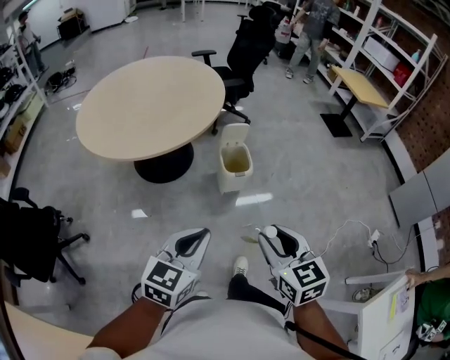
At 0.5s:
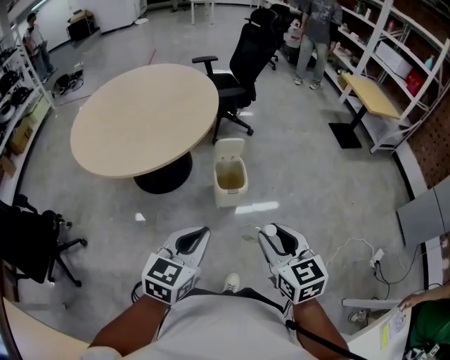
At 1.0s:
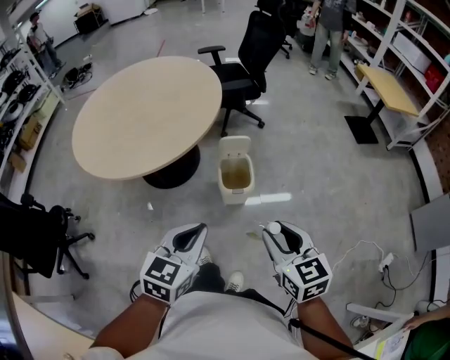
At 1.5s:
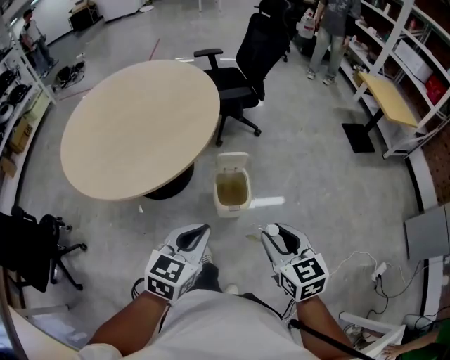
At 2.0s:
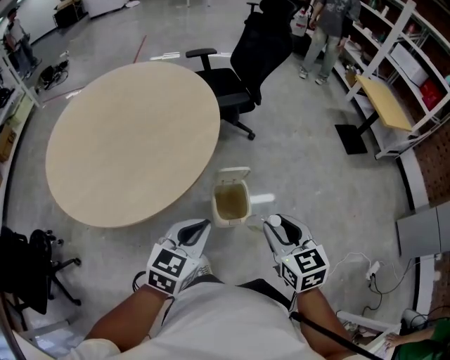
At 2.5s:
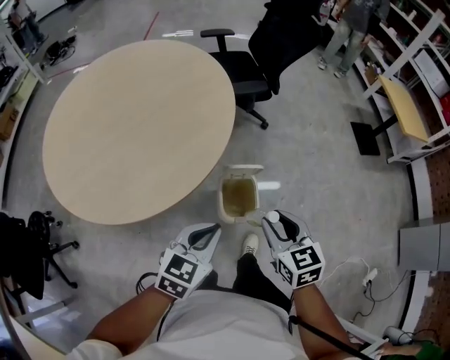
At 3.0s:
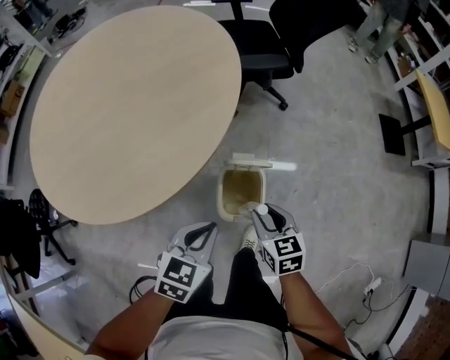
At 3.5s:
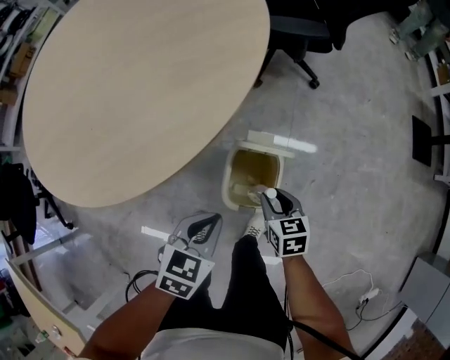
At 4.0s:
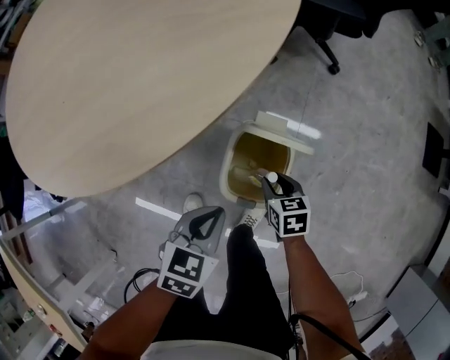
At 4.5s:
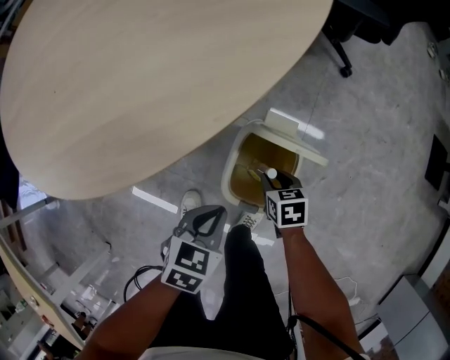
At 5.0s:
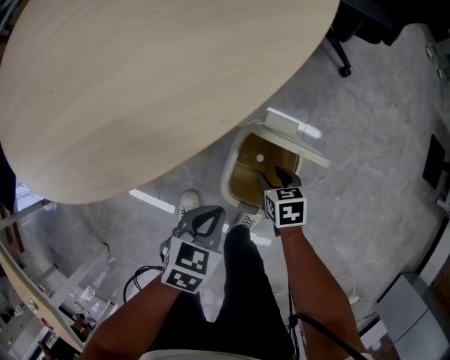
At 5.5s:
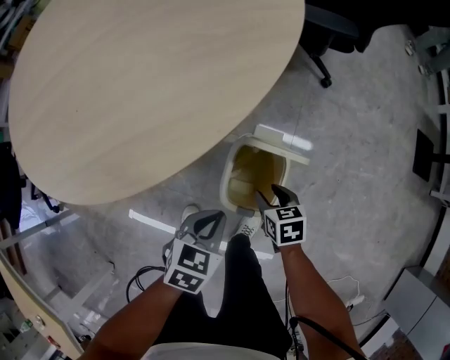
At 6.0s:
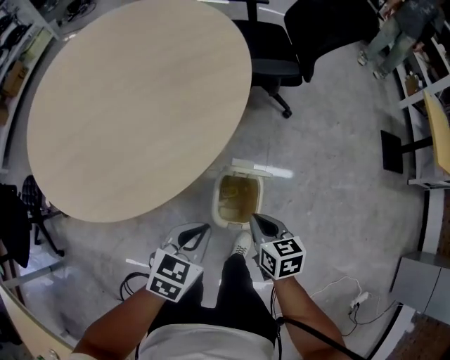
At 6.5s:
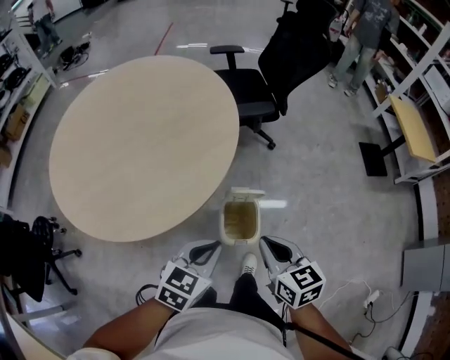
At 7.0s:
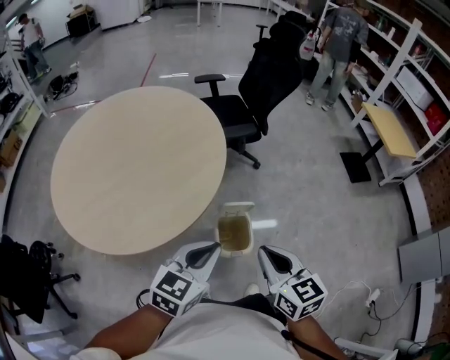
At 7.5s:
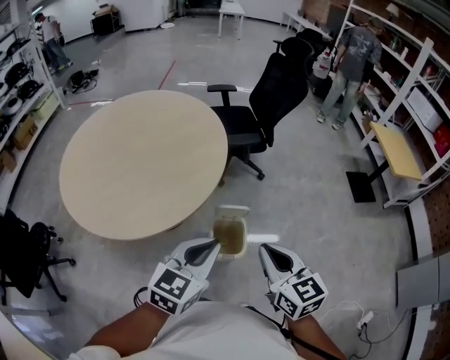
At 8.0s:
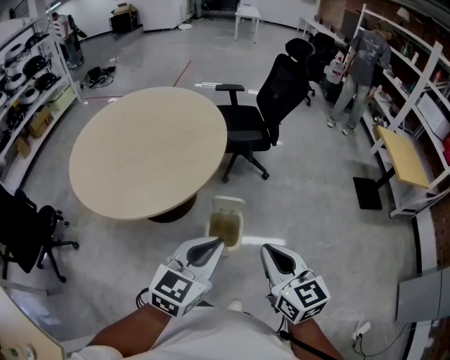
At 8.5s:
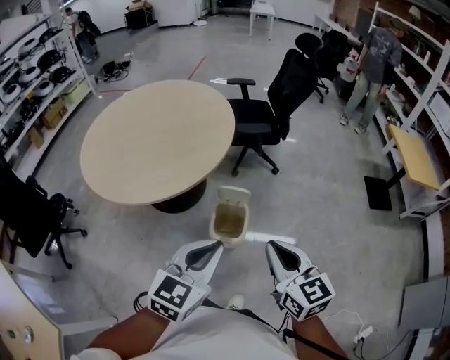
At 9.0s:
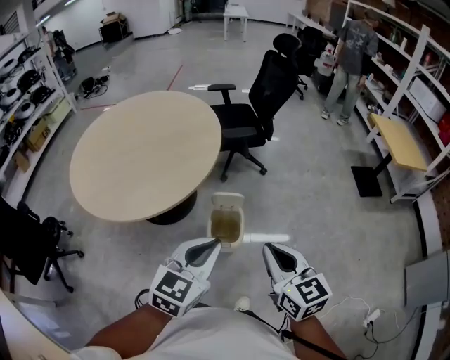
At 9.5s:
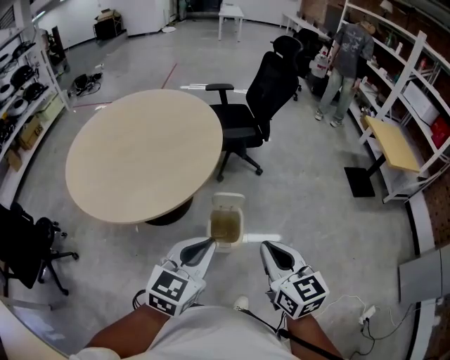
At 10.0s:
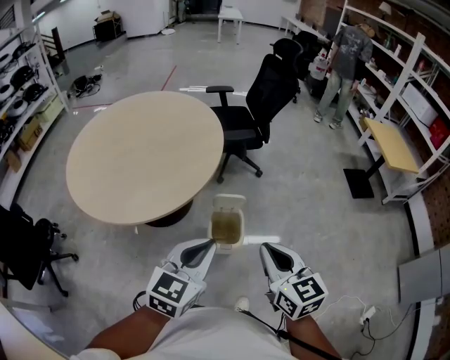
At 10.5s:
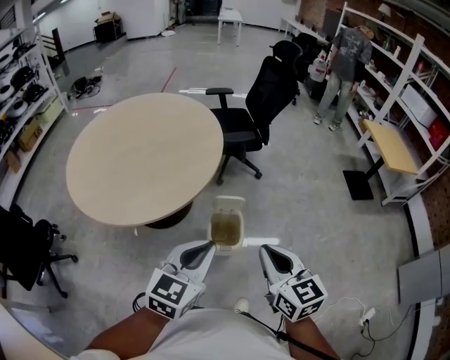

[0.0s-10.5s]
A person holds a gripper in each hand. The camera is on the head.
0.0s to 2.0s: The grippers both shift forward by some 35 cm.
2.0s to 4.0s: The right gripper is displaced downward by some 40 cm, and swivels approximately 40 degrees; the left gripper shifts approximately 25 cm downward, and swivels some 30 degrees.
4.0s to 6.5s: The left gripper goes approximately 20 cm upward, and swivels some 30 degrees, while the right gripper is displaced upward by approximately 35 cm, rotates roughly 30 degrees, and closes.
6.5s to 8.5s: The left gripper moves upward, to the right and backward, roughly 20 cm, and rotates roughly 20 degrees; the right gripper is displaced to the right, upward and backward by approximately 20 cm.
8.5s to 10.5s: Both grippers move to the left, about 5 cm.

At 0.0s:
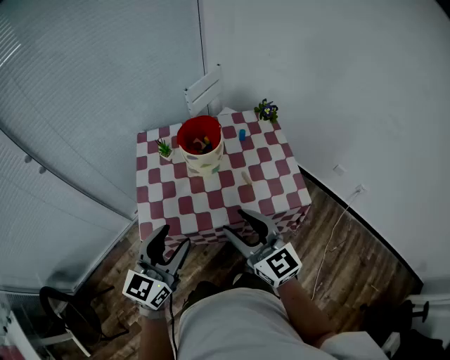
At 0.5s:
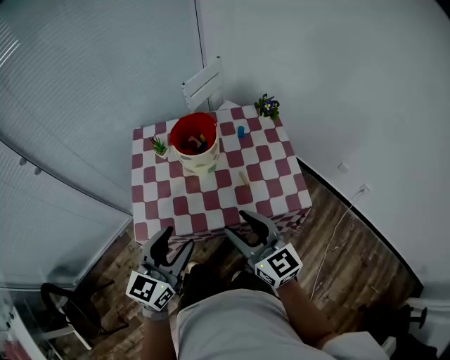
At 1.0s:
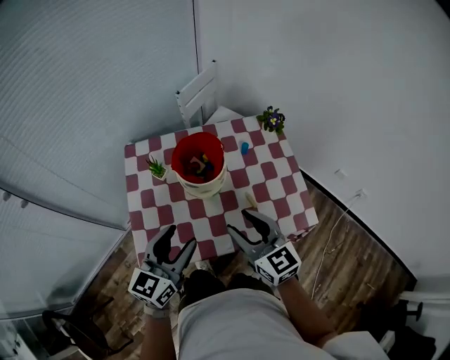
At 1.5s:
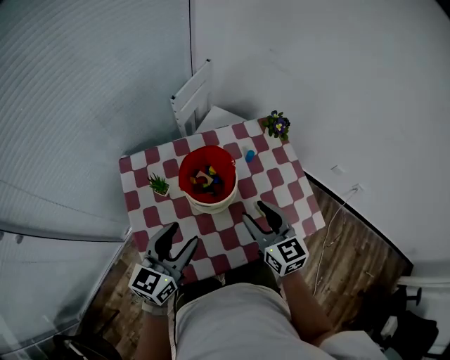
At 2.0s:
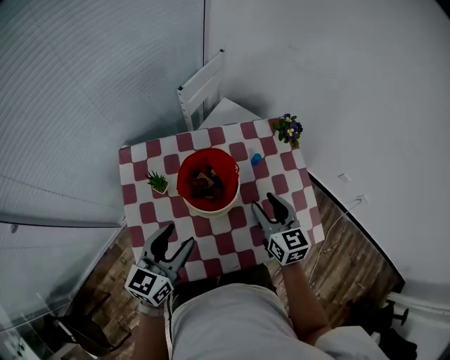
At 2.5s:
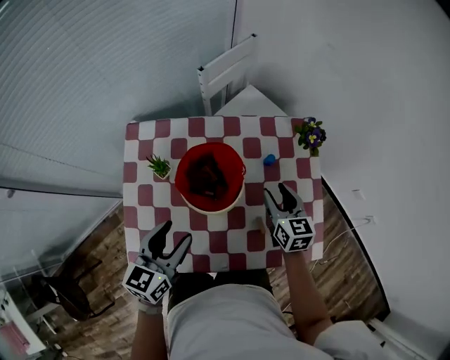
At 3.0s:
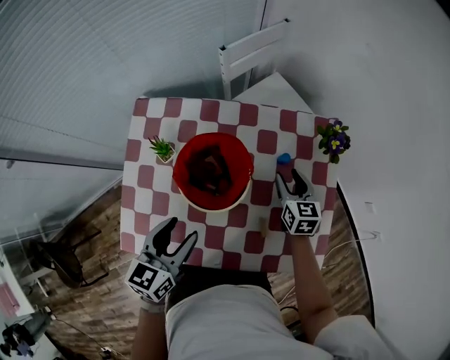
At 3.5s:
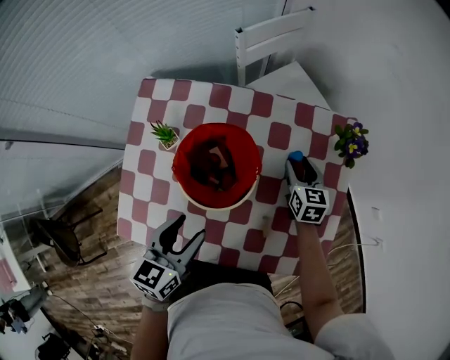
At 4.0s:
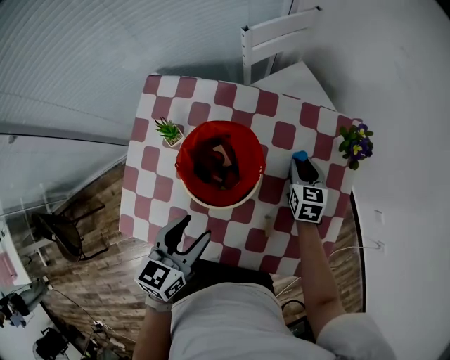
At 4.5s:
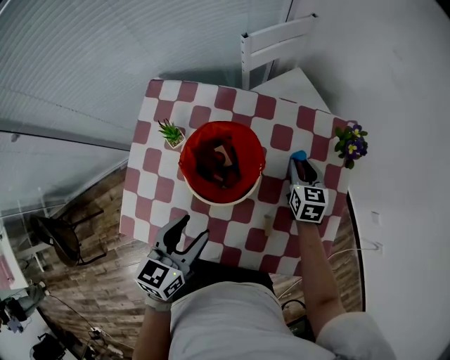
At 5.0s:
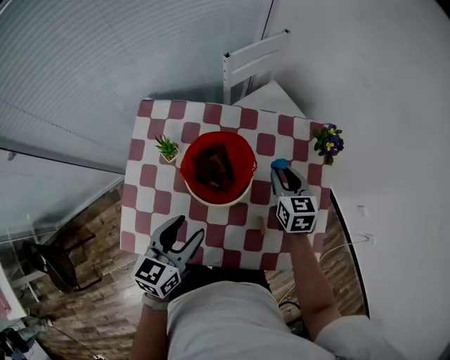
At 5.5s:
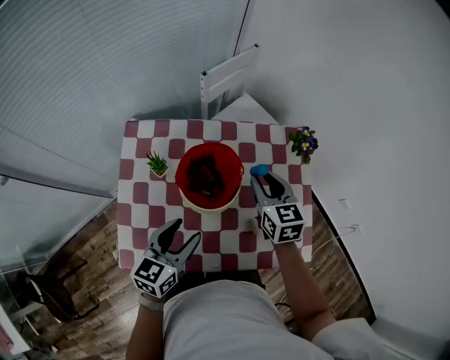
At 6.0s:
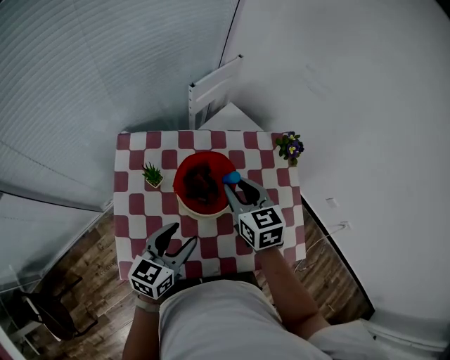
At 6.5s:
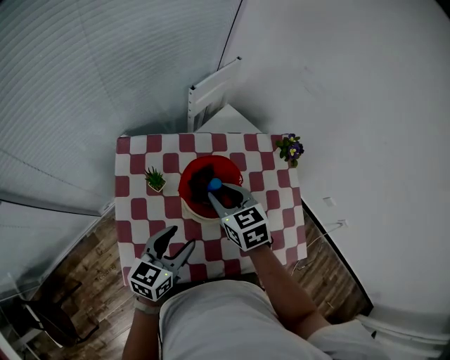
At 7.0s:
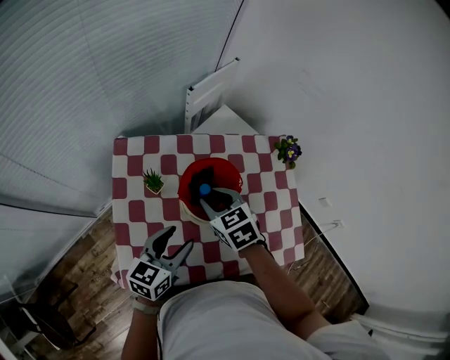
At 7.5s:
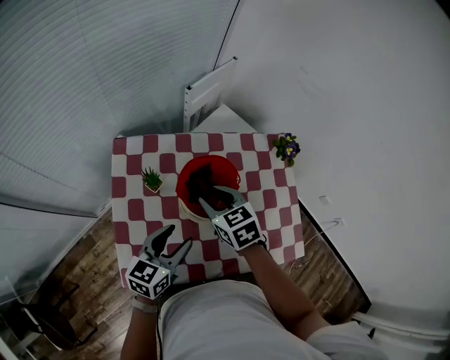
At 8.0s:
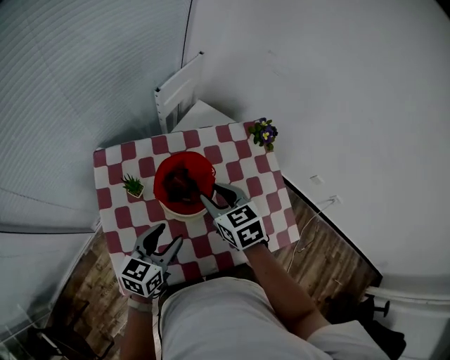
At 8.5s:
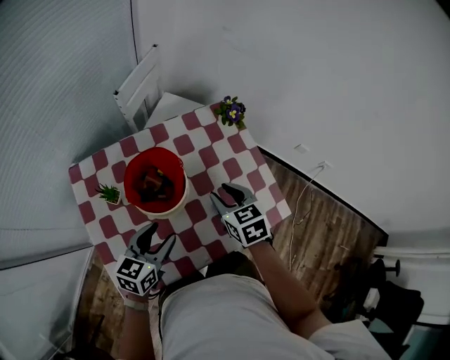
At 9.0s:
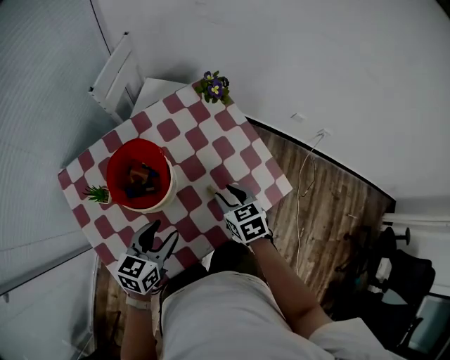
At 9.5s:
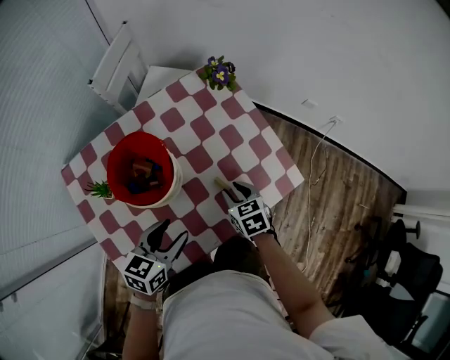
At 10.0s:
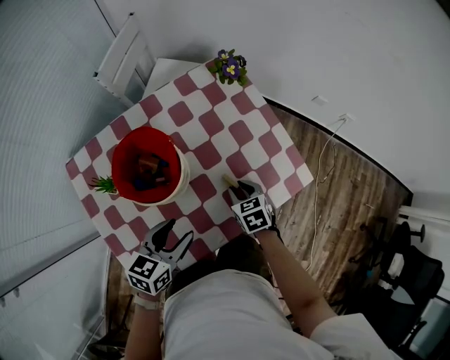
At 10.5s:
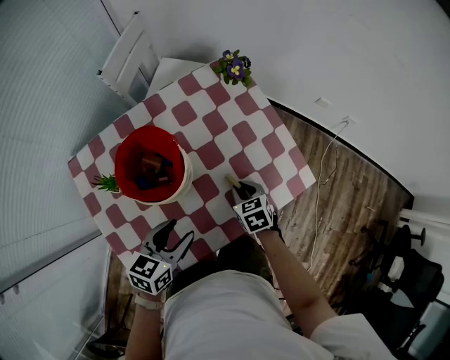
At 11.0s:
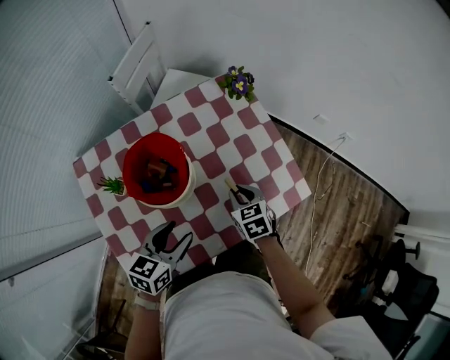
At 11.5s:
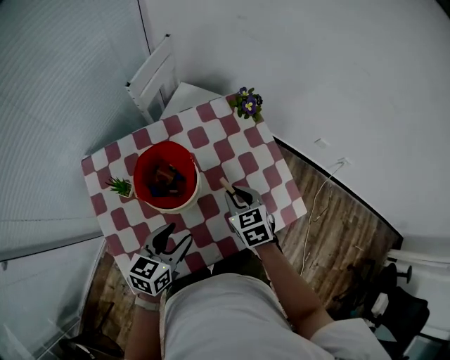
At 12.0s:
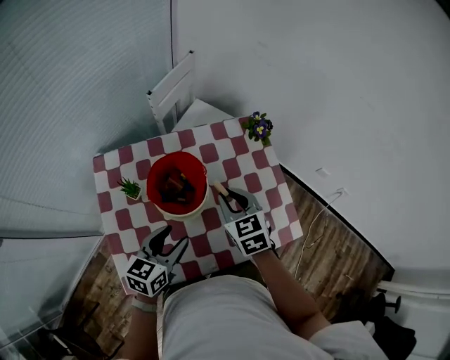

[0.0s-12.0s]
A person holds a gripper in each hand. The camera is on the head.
0.0s to 2.0s: Both grippers move forward, some 30 cm. The right gripper rotates about 30 degrees.
2.0s to 4.0s: The right gripper heads downward and forward, covering some 25 cm; the left gripper heads downward and to the right, covering roughly 10 cm, and rotates about 30 degrees.
4.0s to 6.0s: The left gripper travels to the left by approximately 5 cm, and changes its angle by about 20 degrees, while the right gripper is displaced upward, to the left and backward by approximately 30 cm.
6.0s to 8.0s: The right gripper travels to the left and back again, about 10 cm each way.
8.0s to 10.0s: The right gripper shifts about 25 cm downward and to the right, and turns by roughly 30 degrees. The left gripper is displaced to the right and downward by roughly 10 cm, and swivels roughly 20 degrees.
10.0s to 12.0s: The left gripper shifts approximately 5 cm upward, and turns by about 20 degrees. The right gripper shifts about 25 cm upward and to the left, and swivels approximately 30 degrees.

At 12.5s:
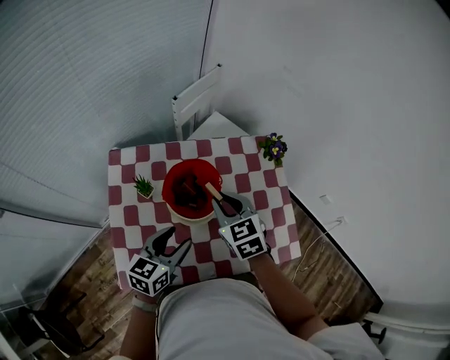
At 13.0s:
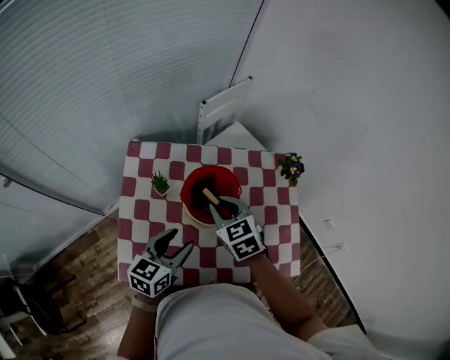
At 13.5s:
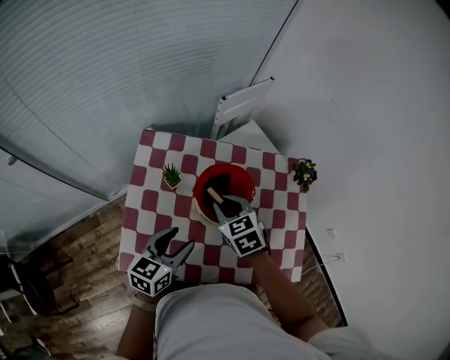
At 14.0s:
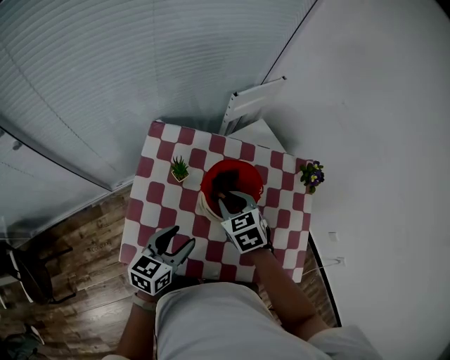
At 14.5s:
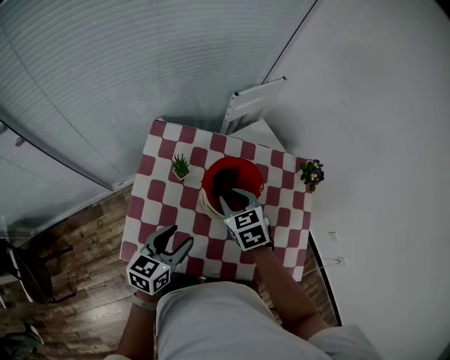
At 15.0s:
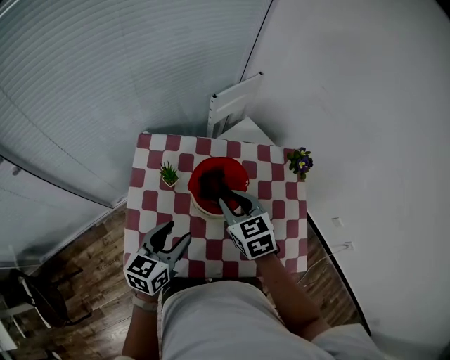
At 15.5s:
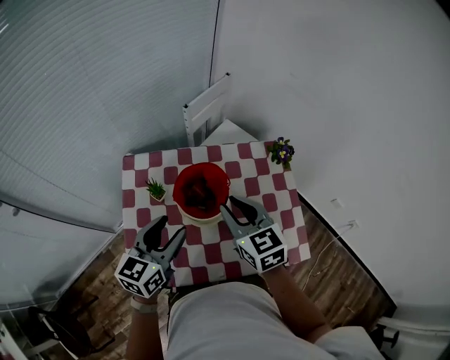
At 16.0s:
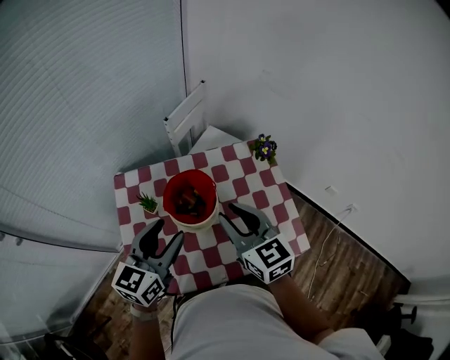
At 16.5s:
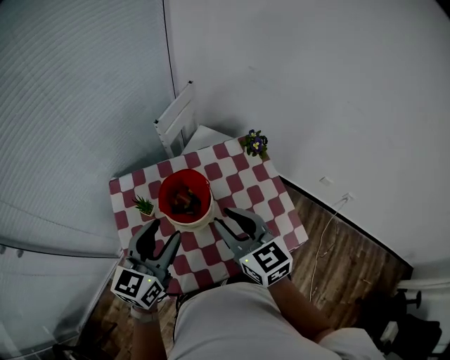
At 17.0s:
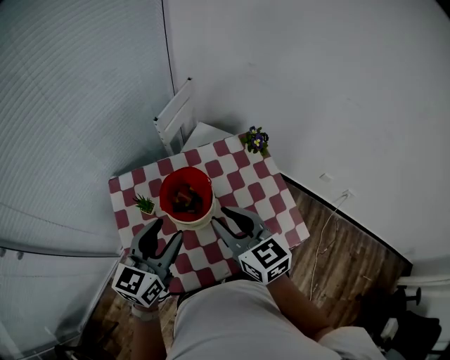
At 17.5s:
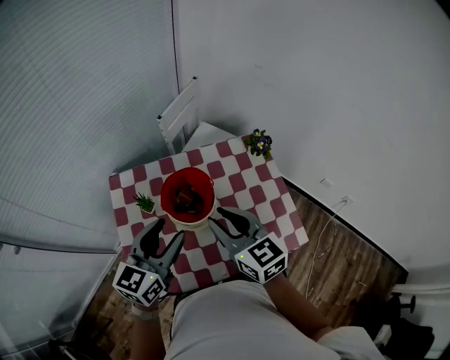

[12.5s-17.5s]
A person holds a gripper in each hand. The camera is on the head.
12.5s to 15.0s: The left gripper heads to the left, covering about 5 cm.
15.0s to 17.5s: The right gripper goes about 10 cm upward and backward, and turns by roughly 20 degrees; the left gripper moves upward, approximately 10 cm, and changes its angle by roughly 20 degrees.
